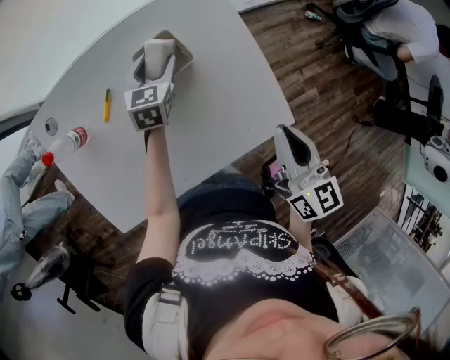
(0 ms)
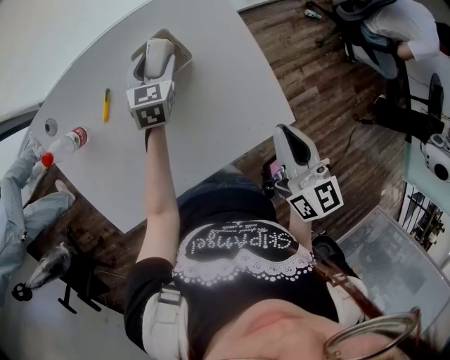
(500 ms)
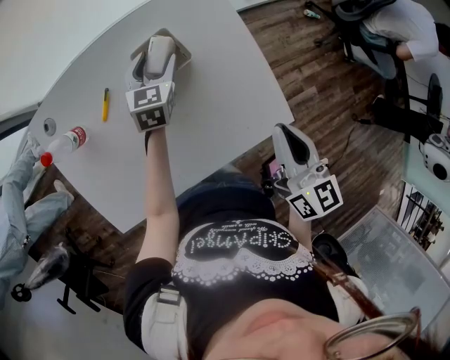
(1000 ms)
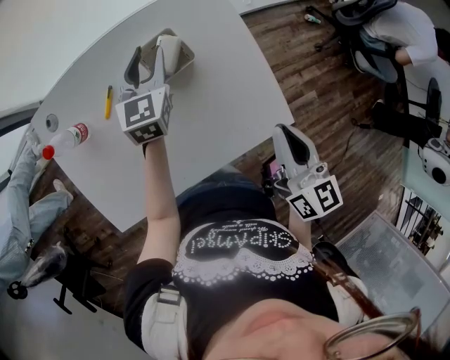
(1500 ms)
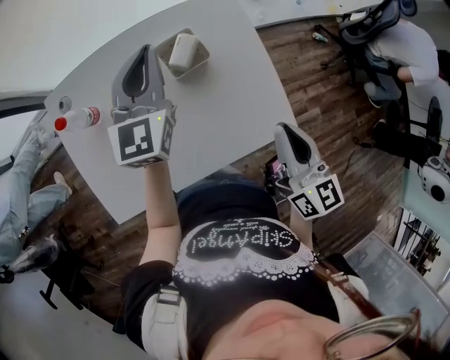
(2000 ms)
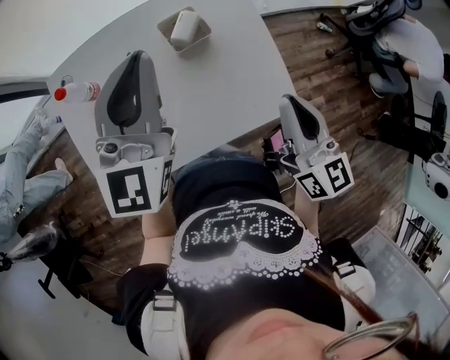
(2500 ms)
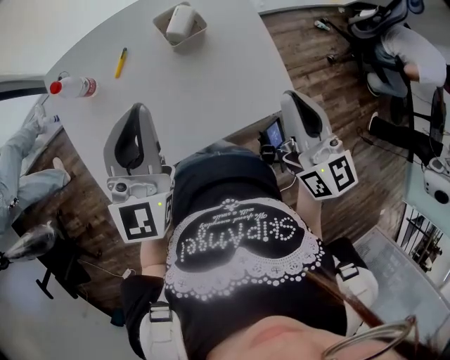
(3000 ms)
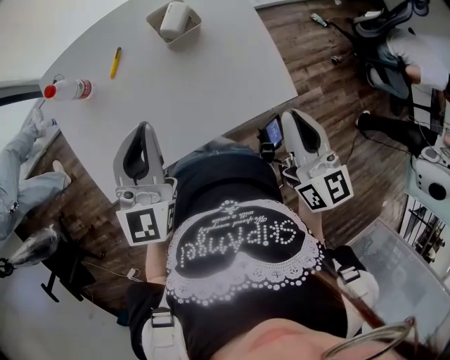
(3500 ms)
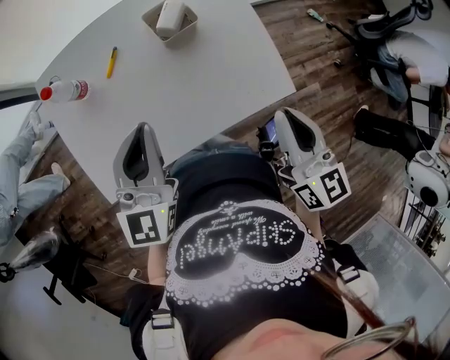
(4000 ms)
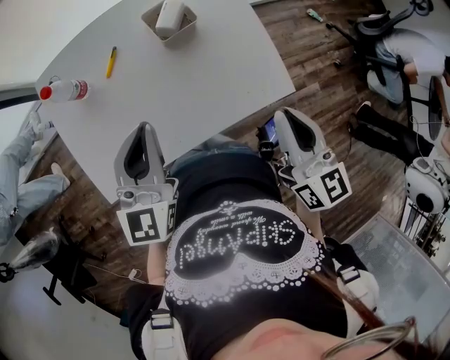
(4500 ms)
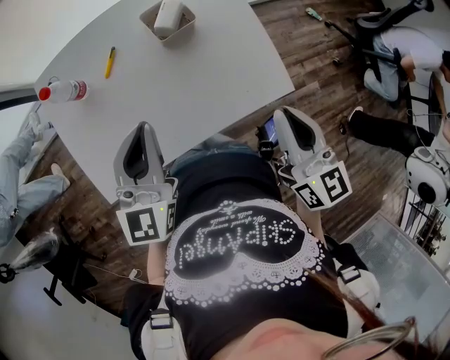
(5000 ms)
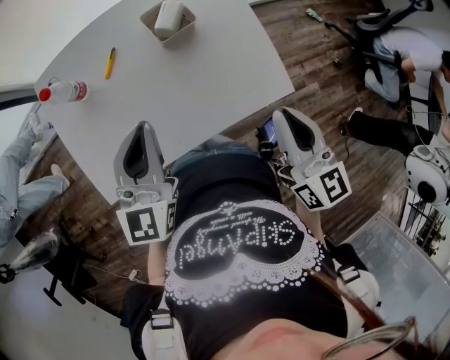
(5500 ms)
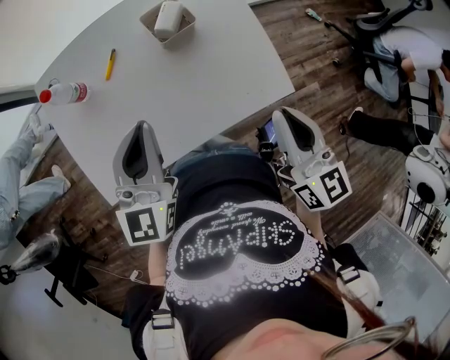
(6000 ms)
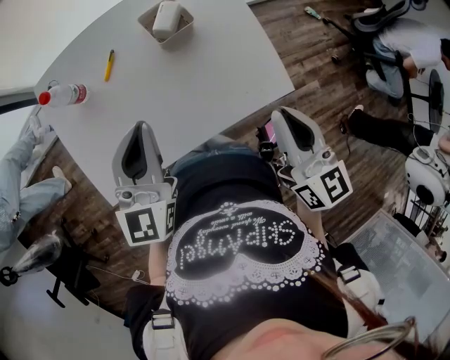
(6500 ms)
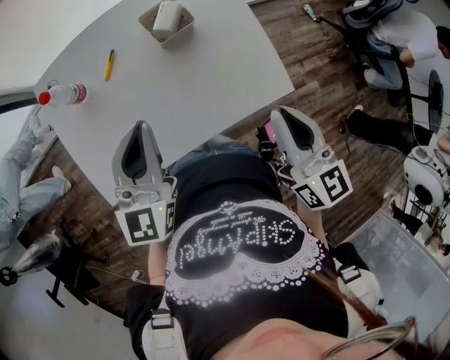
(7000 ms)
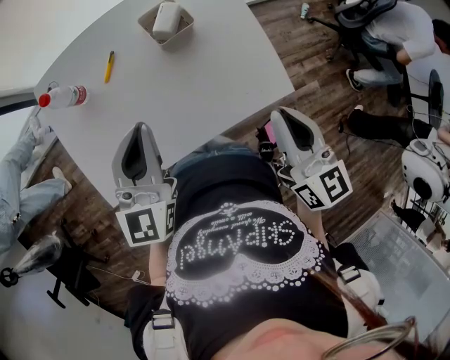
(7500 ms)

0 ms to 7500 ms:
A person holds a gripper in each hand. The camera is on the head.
0 ms to 2000 ms: The left gripper heads upward, covering approximately 20 cm, changes its angle by some 30 degrees, and closes its fingers.
2000 ms to 4000 ms: The left gripper goes roughly 20 cm backward; the right gripper goes some 10 cm backward.
4000 ms to 7500 ms: Both grippers stay put.

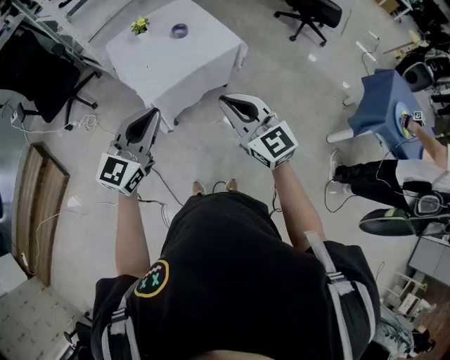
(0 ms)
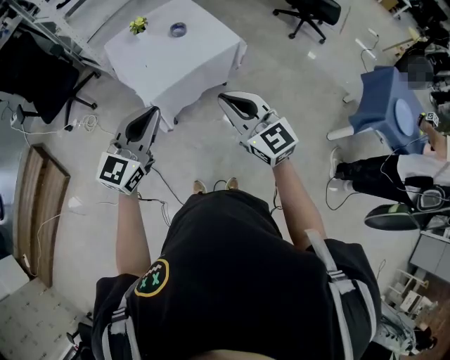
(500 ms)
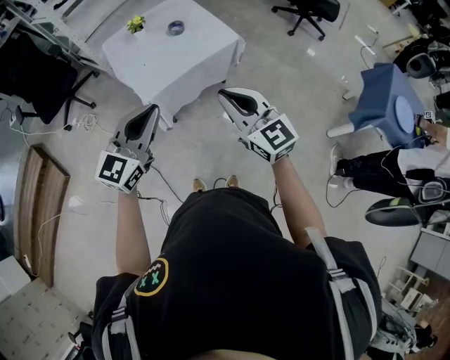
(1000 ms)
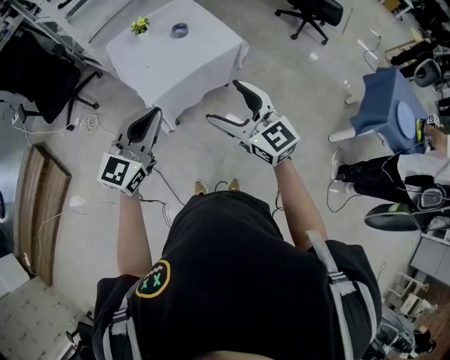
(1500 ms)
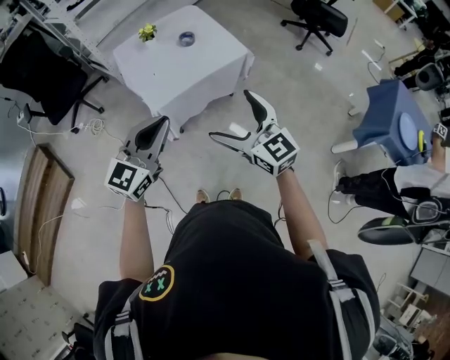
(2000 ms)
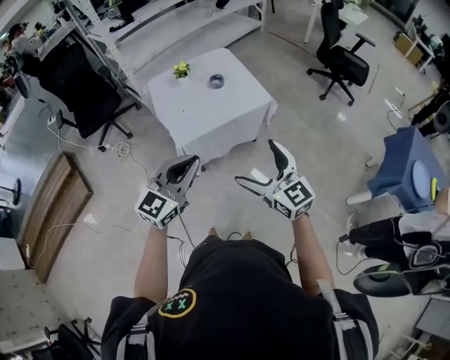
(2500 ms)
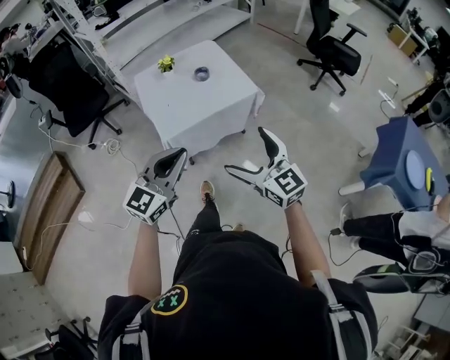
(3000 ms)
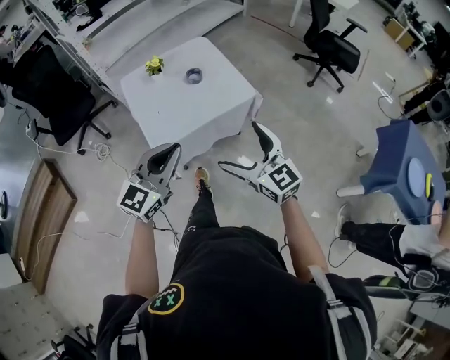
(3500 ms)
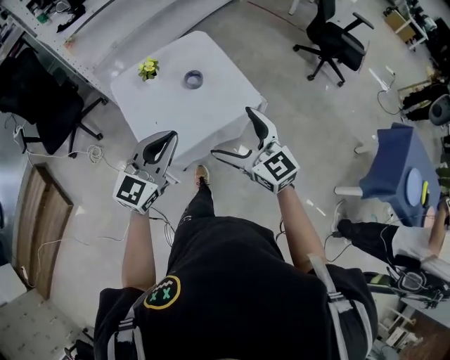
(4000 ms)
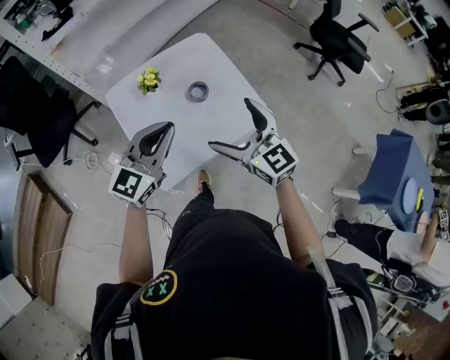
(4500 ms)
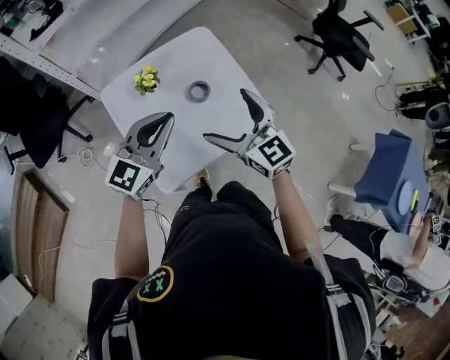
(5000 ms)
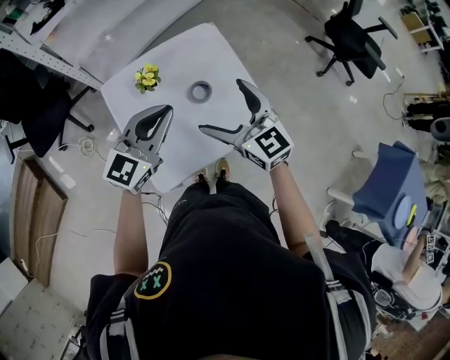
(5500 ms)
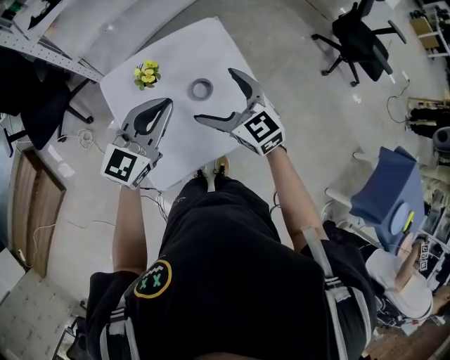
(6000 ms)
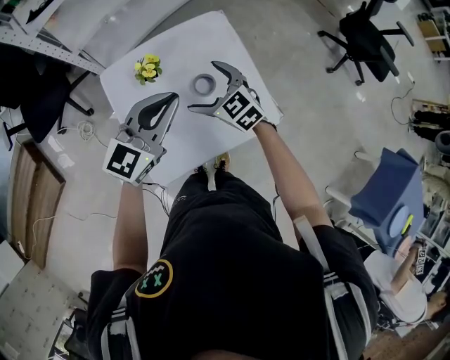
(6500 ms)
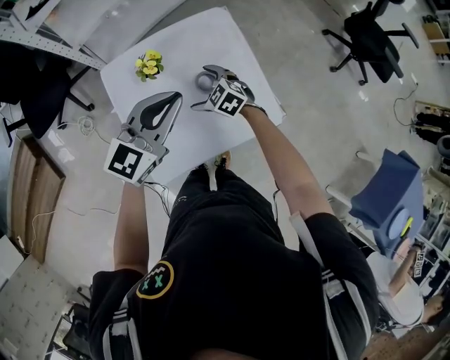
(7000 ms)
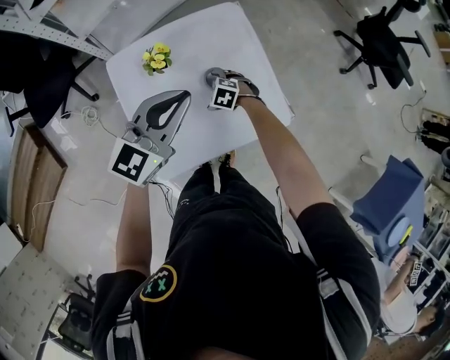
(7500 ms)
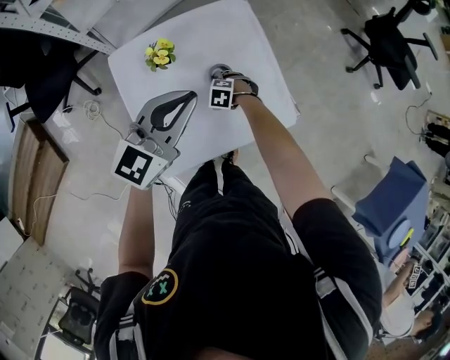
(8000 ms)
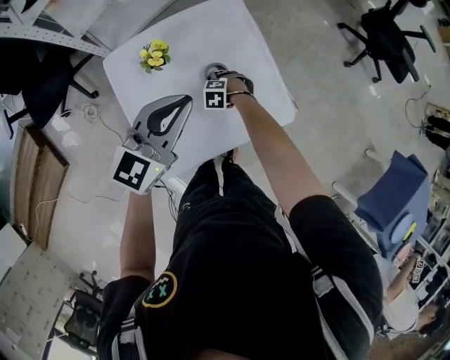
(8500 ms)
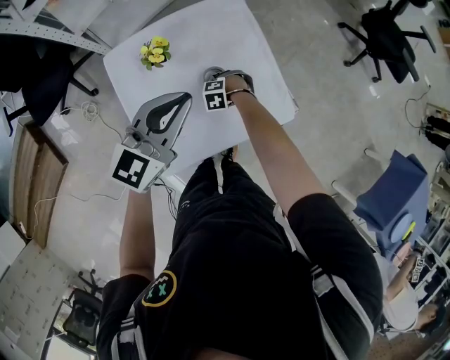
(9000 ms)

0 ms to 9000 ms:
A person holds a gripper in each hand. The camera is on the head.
0 ms to 2000 ms: The right gripper opens its fingers.
2000 ms to 4500 ms: Both grippers are carried forward, approximately 40 cm.
4500 ms to 7000 ms: The left gripper shifts approximately 15 cm forward, while the right gripper heads downward and forward, covering roughly 35 cm, and tilts its fingers about 40 degrees downward.
7000 ms to 9000 ms: The right gripper moves downward, about 15 cm, tips its fingers downward by about 30 degrees, and closes its fingers.

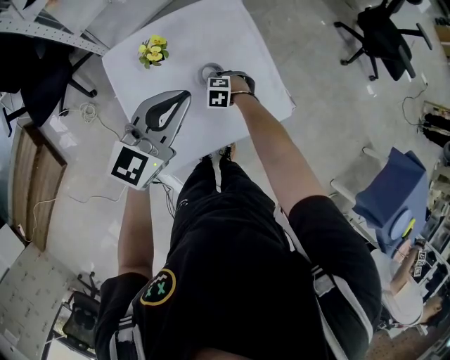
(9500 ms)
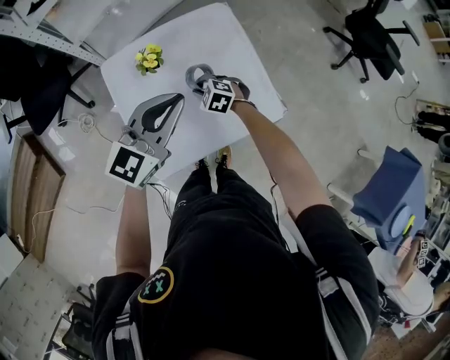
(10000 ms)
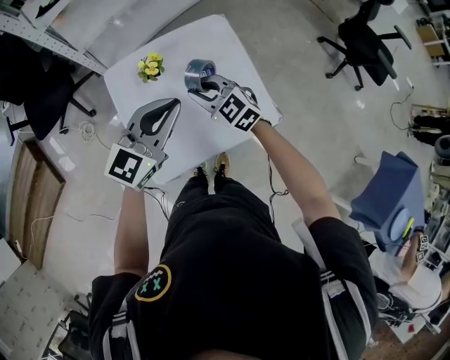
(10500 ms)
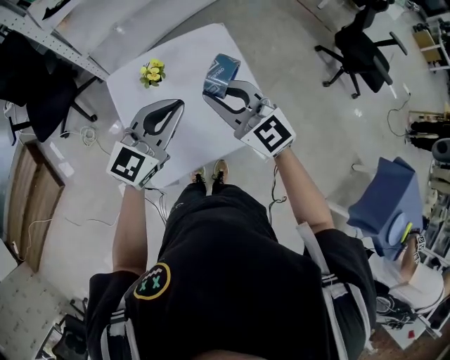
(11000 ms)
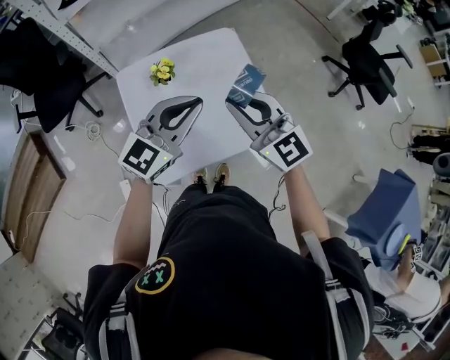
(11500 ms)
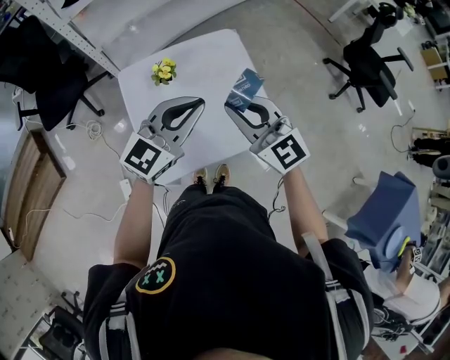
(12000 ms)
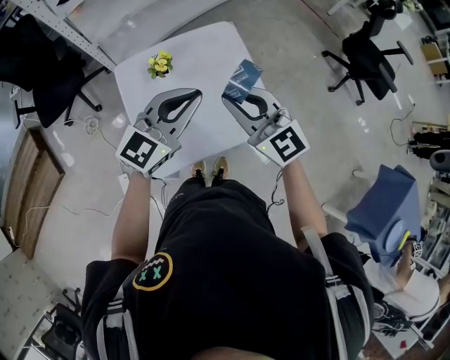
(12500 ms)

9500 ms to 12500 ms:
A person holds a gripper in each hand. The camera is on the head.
9500 ms to 11000 ms: The right gripper travels upward by some 40 cm, and points its fingers about 70 degrees further upward; the left gripper changes place by roughly 5 cm.
11000 ms to 12500 ms: The grippers move only a little.

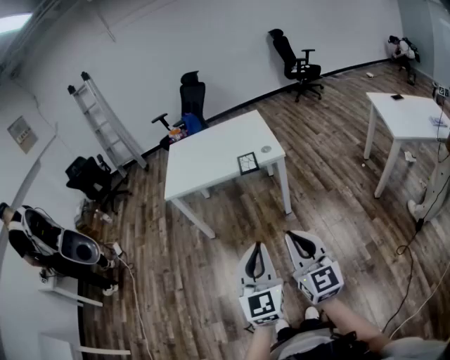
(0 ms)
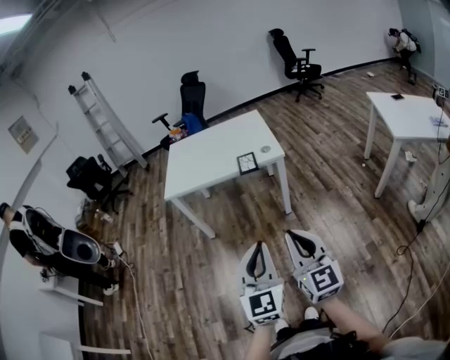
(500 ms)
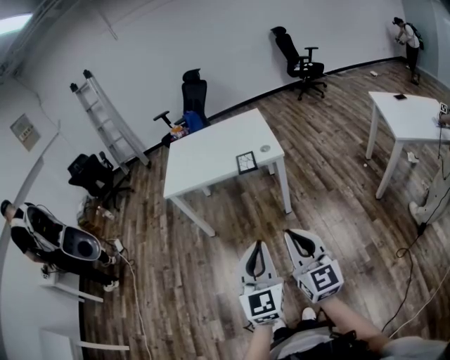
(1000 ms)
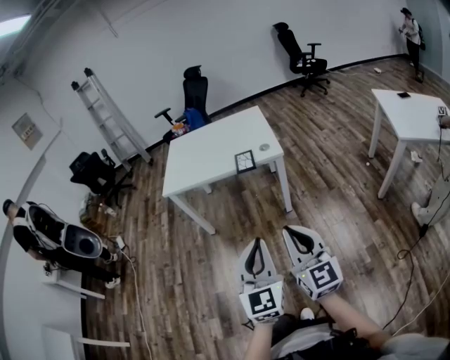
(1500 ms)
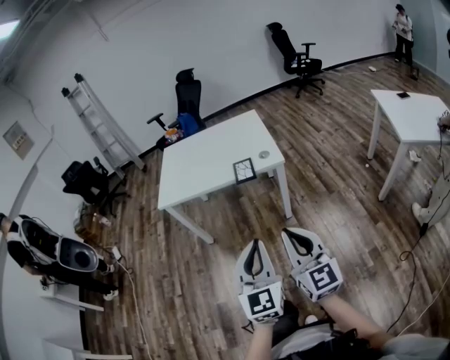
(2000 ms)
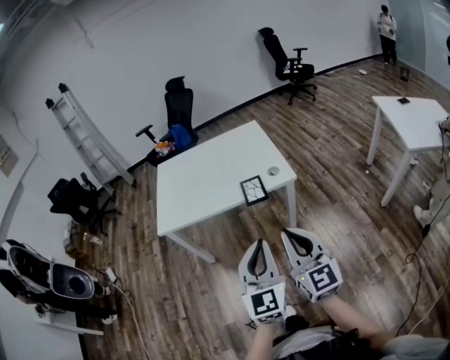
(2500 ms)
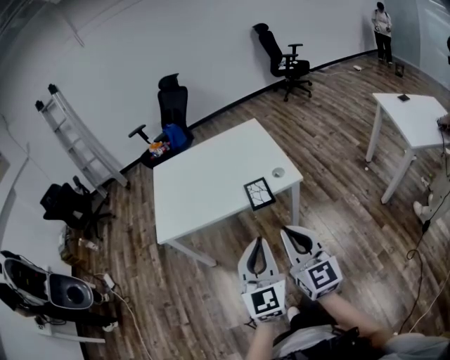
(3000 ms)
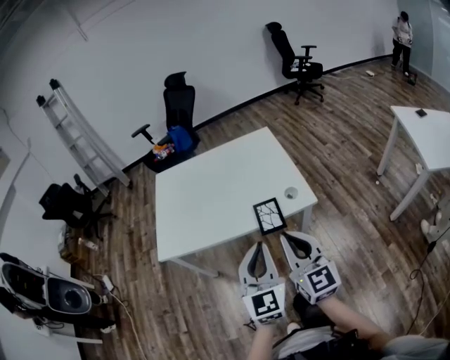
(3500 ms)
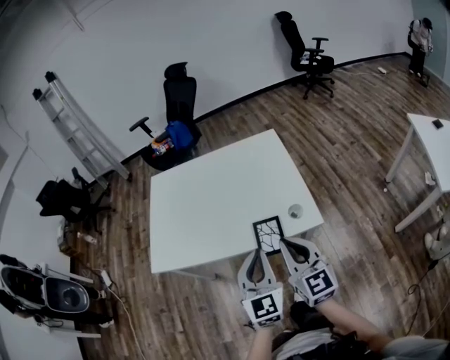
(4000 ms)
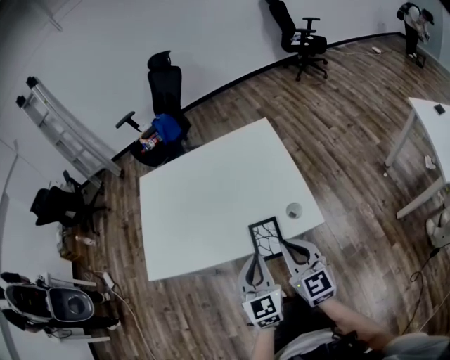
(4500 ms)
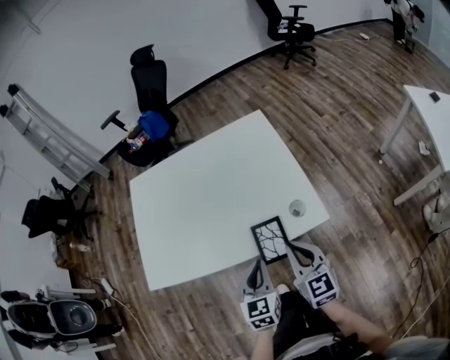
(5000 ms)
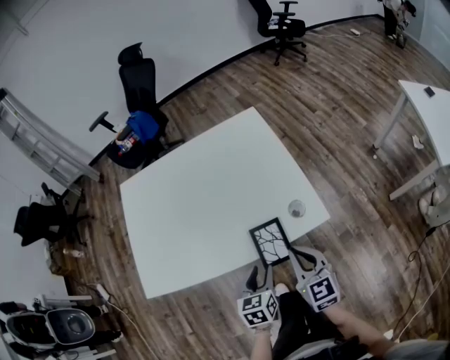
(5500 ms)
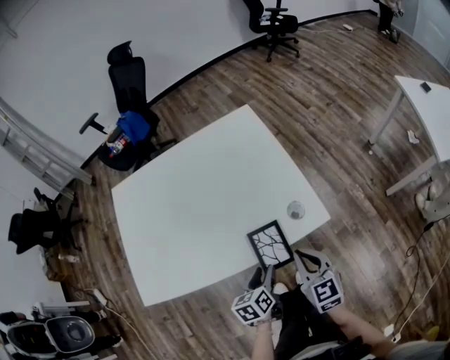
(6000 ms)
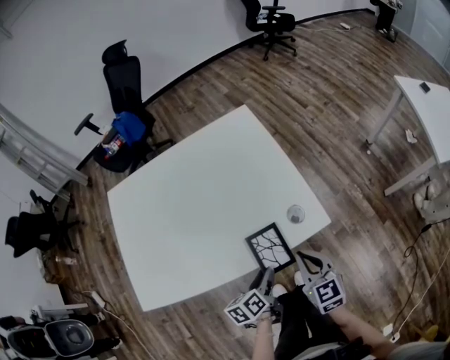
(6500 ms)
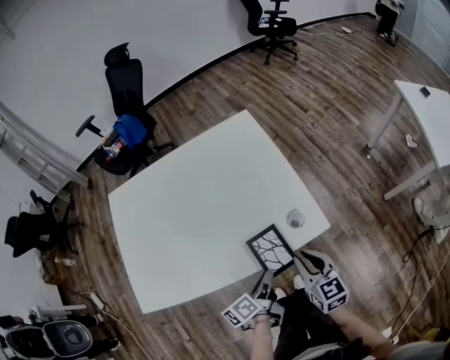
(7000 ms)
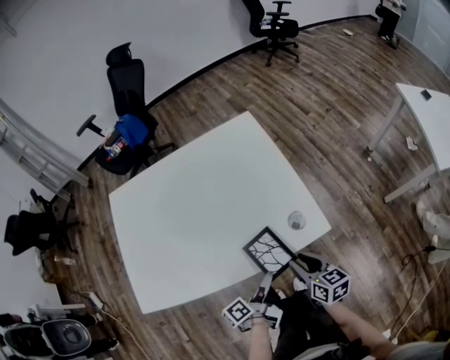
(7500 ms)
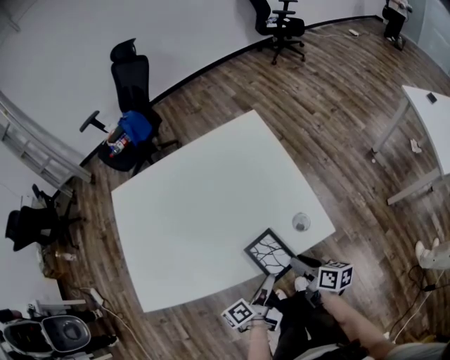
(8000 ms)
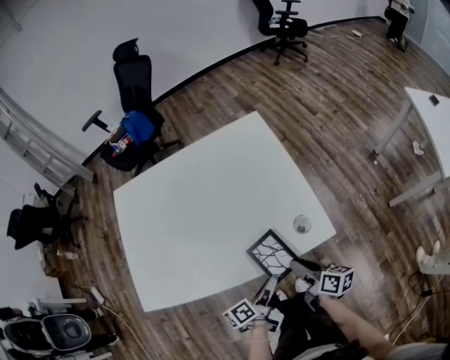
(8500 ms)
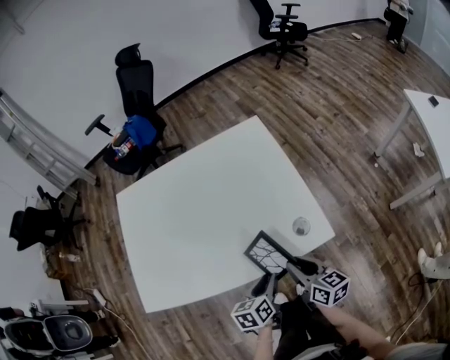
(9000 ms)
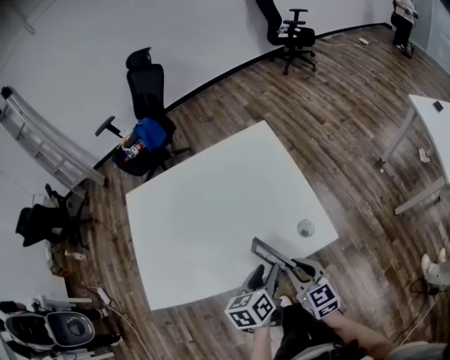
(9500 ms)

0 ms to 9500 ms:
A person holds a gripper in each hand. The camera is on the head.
0 ms to 2000 ms: Both grippers move forward, about 10 cm.
2000 ms to 4000 ms: The pair of grippers is taken forward, about 50 cm.
4000 ms to 5500 ms: The left gripper shifts about 20 cm downward, angles its fingers downward, by about 30 degrees, and opens its fingers, while the right gripper is displaced downward and forward by about 15 cm, and changes its angle by about 20 degrees.
5500 ms to 7500 ms: The left gripper twists some 70 degrees counterclockwise, seen from behind. Meanwhile the right gripper moves downward, roughly 10 cm, rotates roughly 30 degrees, and opens.
7500 ms to 9500 ms: The left gripper travels upward by about 10 cm, rolls clockwise, seen from behind, by some 50 degrees, and opens its fingers; the right gripper is displaced upward by some 5 cm, and turns by about 30 degrees.
